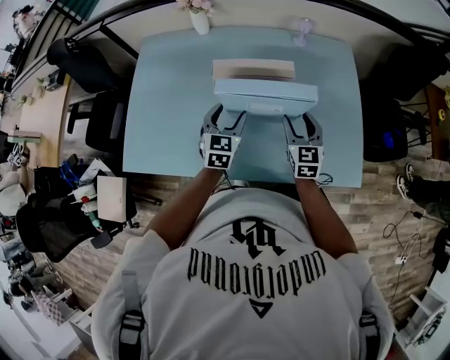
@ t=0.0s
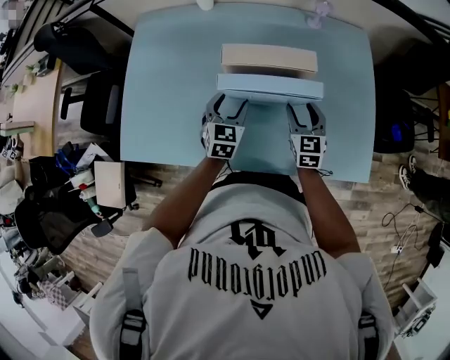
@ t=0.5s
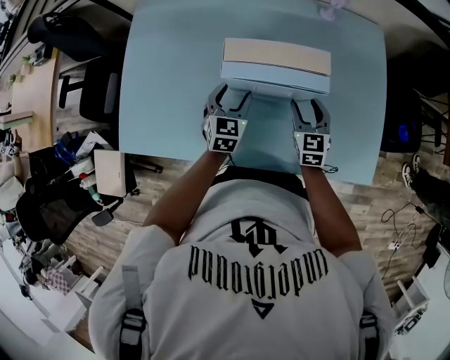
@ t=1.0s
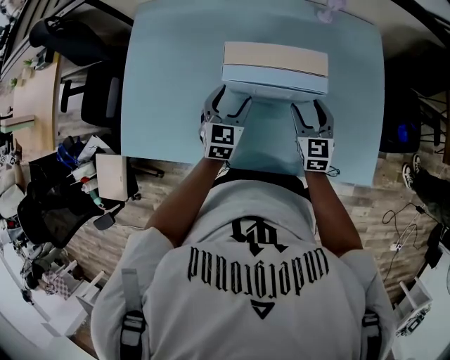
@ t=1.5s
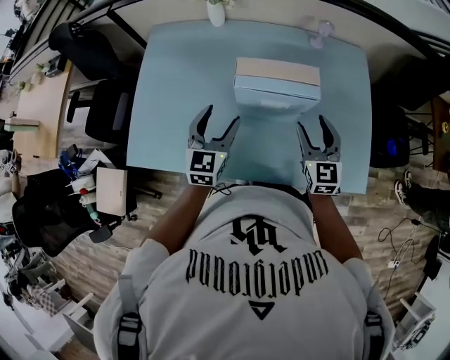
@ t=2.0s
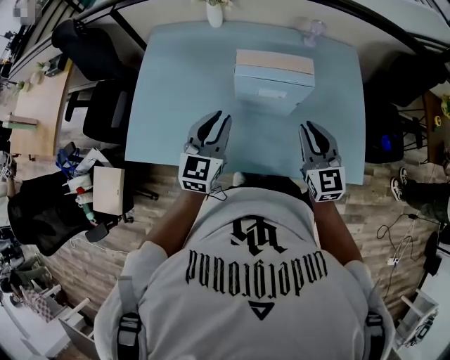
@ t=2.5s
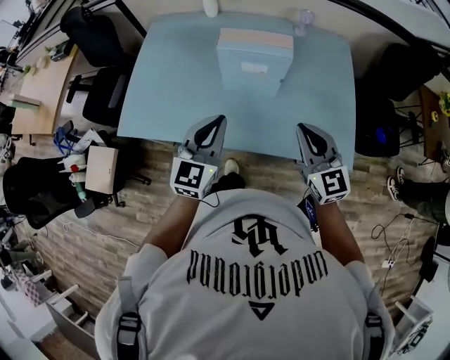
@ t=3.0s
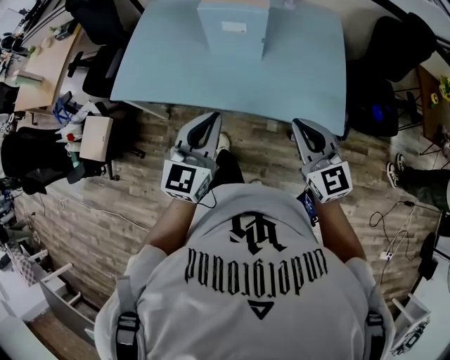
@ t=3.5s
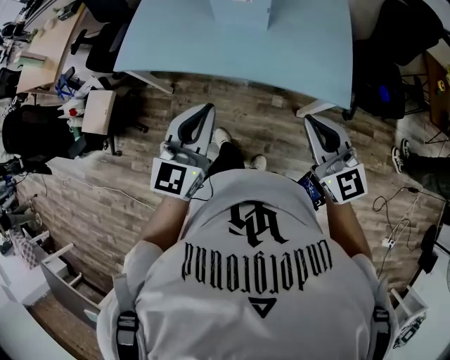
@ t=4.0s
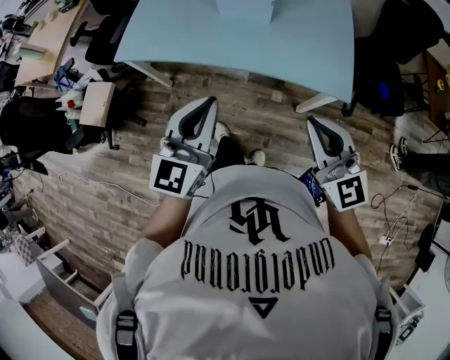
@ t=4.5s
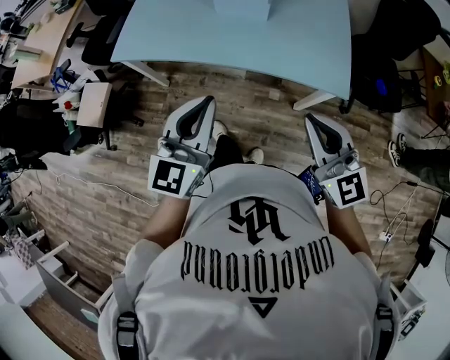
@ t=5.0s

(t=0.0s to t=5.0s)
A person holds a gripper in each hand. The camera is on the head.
t=0.0s - t=2.5s: Both grippers move upward, backward and to the left, approximately 15 cm. The right gripper closes its fingers, while the left gripper closes up.
t=2.5s - t=5.0s: The two grippers travel together, backward, approximately 40 cm. The right gripper turns by roughly 20 degrees.

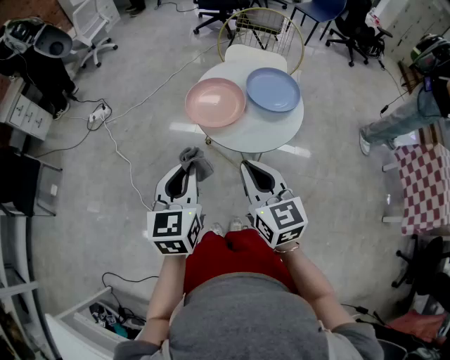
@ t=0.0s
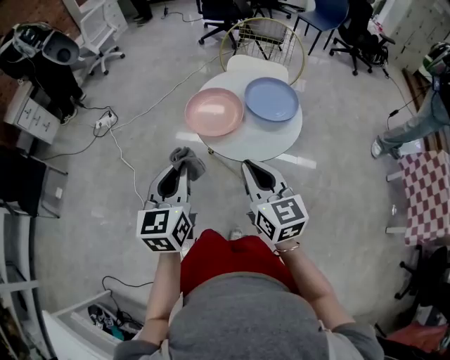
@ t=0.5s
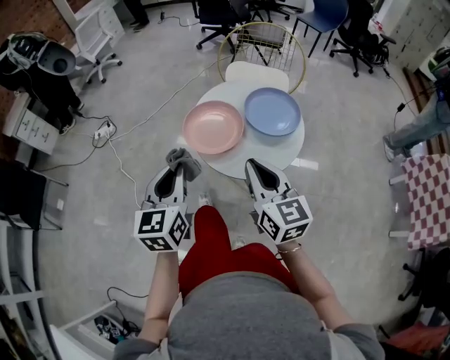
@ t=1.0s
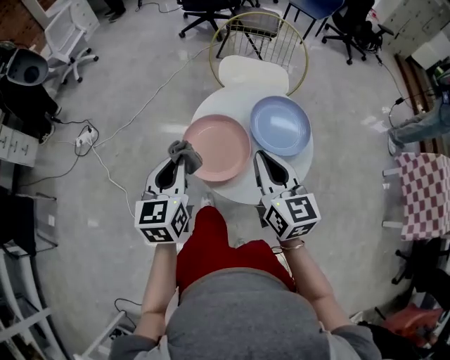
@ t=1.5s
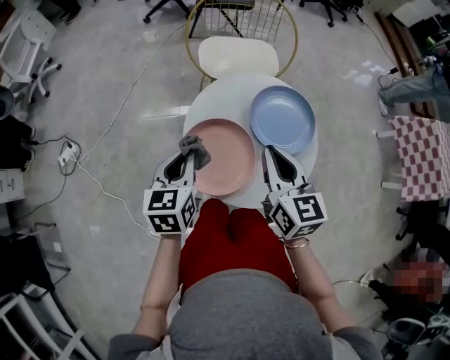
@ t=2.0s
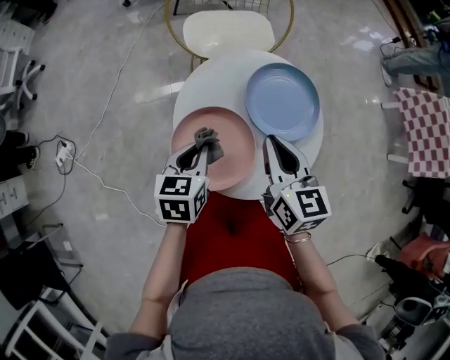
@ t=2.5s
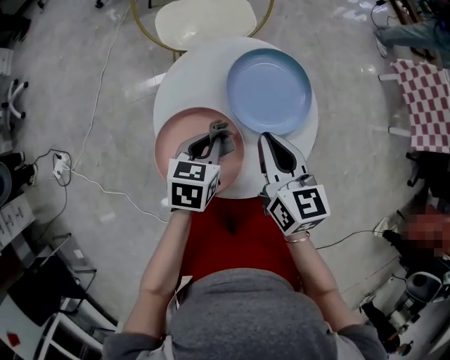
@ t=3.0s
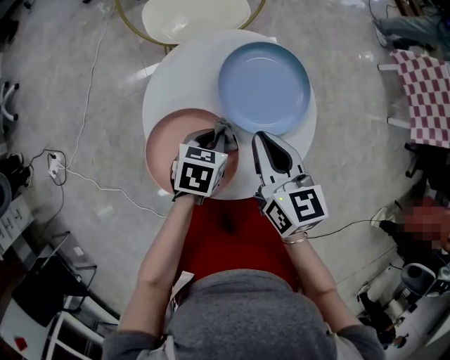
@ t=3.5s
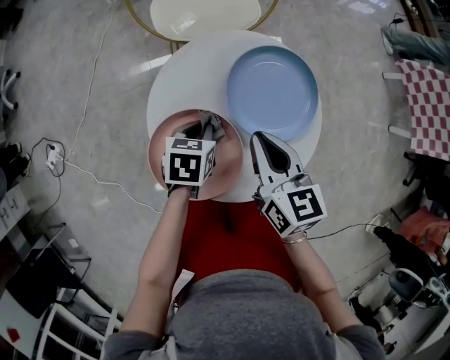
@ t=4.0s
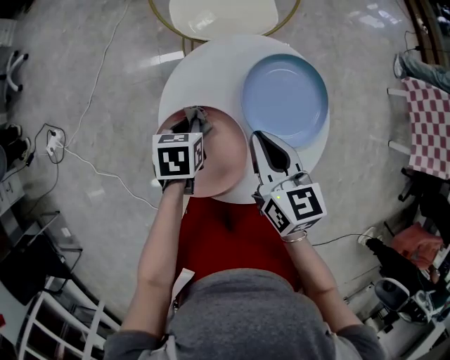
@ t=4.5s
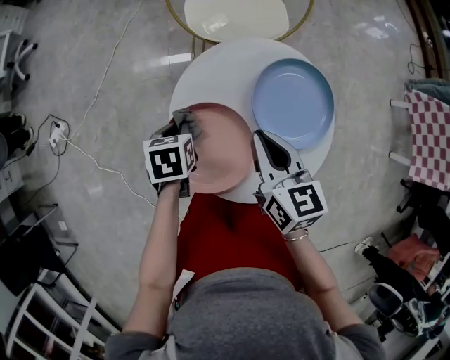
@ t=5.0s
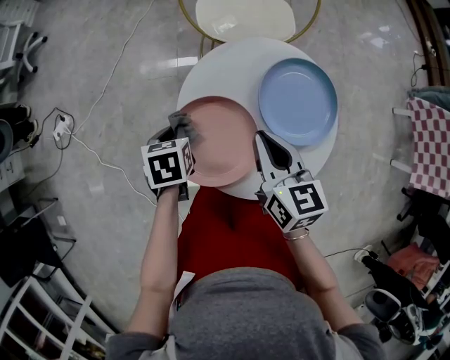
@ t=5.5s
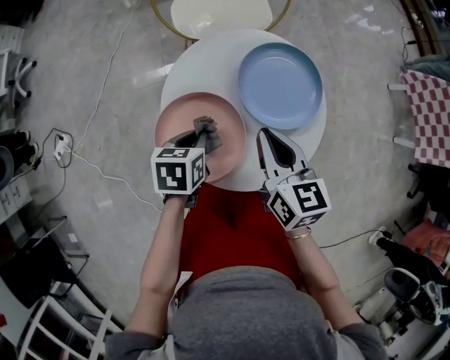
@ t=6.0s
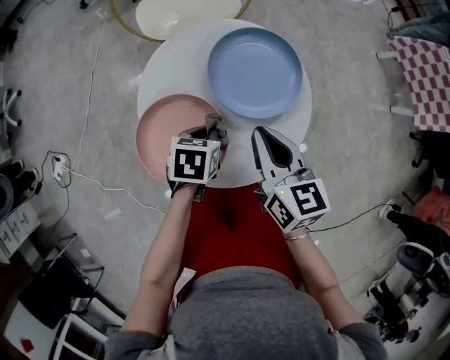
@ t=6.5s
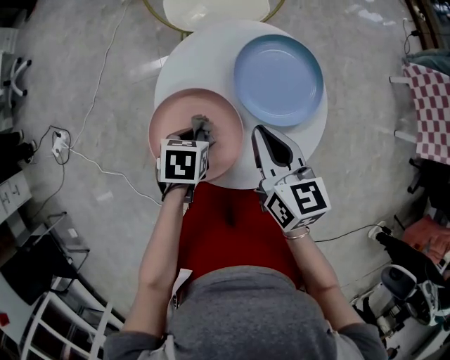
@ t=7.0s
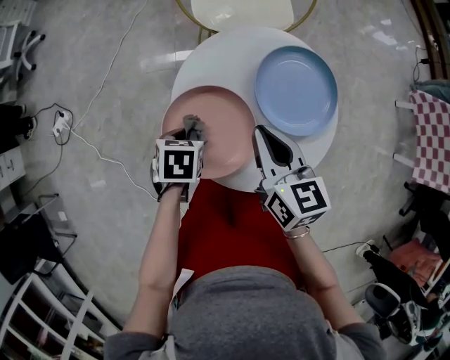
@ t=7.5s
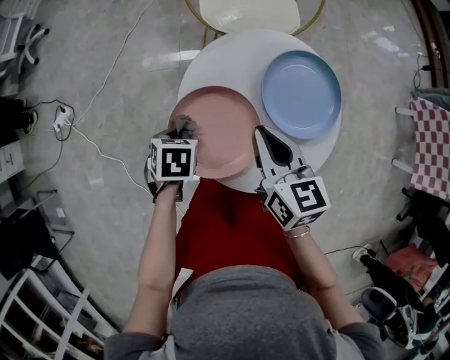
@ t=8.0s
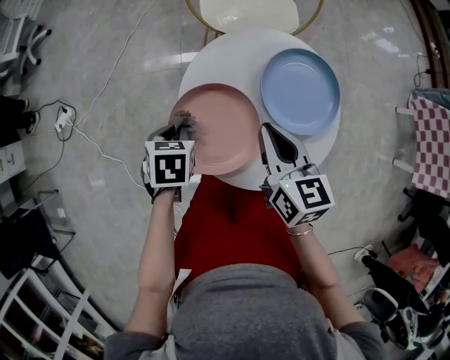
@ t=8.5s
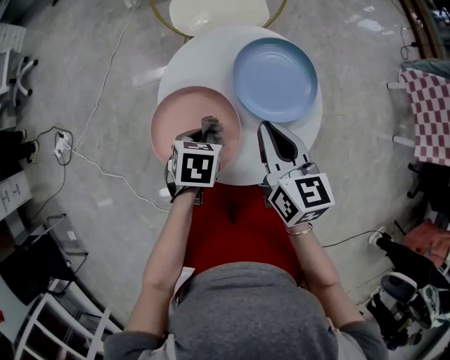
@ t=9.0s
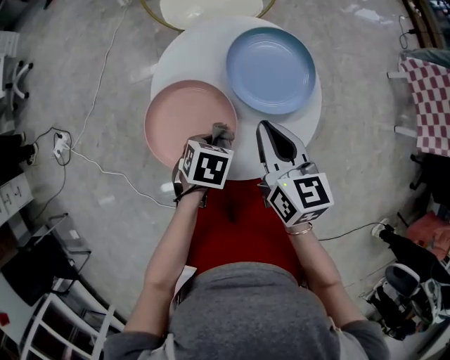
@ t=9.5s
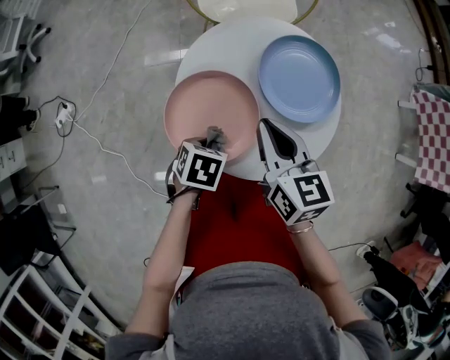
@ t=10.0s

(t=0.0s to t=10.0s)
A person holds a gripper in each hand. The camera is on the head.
t=0.0s - t=2.0s: The grippers both shift forward by approximately 35 cm. The left gripper changes its angle by approximately 20 degrees. The right gripper rotates roughly 30 degrees.
t=2.0s - t=4.0s: The right gripper heads downward, covering roughly 10 cm; the left gripper heads downward, covering some 15 cm, and rotates roughly 40 degrees.
t=4.0s - t=6.0s: The left gripper is displaced backward by some 5 cm, and moves some 15 cm to the left and comes back.
t=6.0s - t=8.0s: The right gripper shifts by roughly 5 cm; the left gripper shifts by about 10 cm, and swivels some 20 degrees.
t=8.0s - t=10.0s: The left gripper moves about 10 cm.

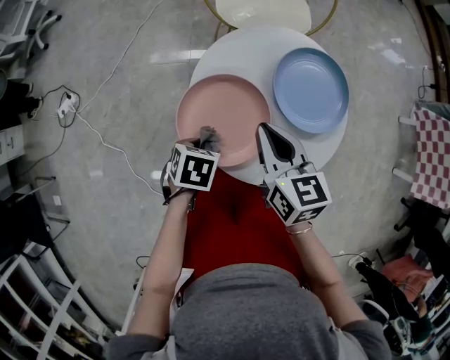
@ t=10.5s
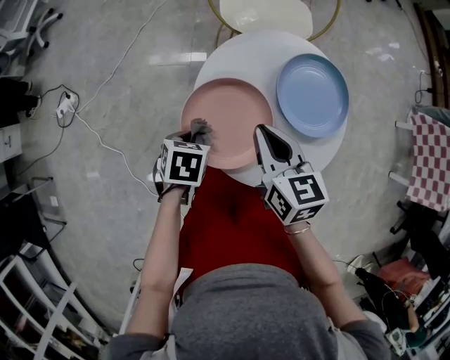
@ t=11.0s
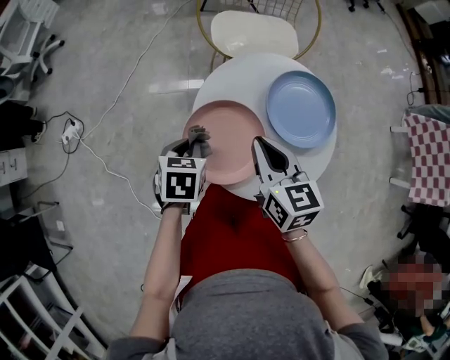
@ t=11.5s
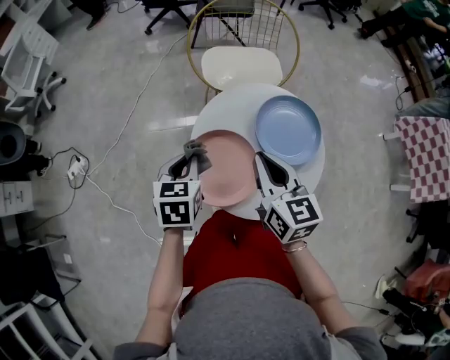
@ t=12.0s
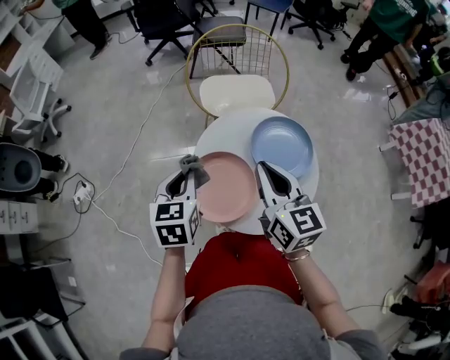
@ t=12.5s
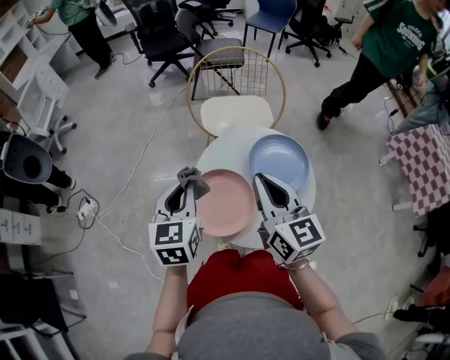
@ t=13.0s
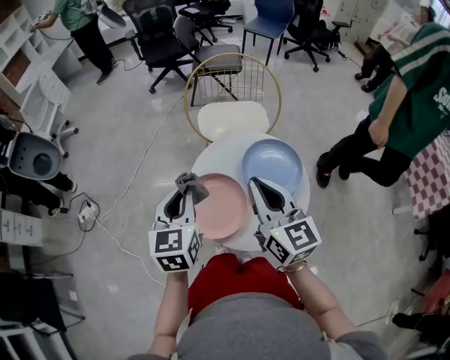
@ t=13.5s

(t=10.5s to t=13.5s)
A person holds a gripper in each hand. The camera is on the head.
t=10.5s - t=12.0s: The left gripper goes approximately 15 cm upward and forward, and rotates roughly 30 degrees. The right gripper travels upward by roughly 5 cm.
t=12.0s - t=13.5s: Both grippers travel together upward, roughly 10 cm. The left gripper rotates approximately 20 degrees.

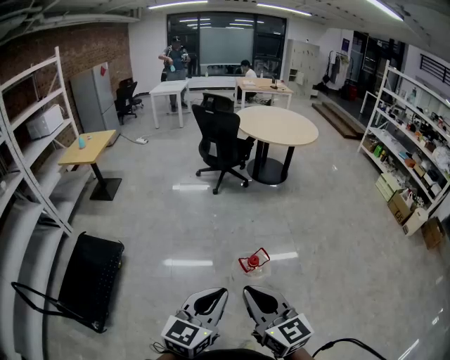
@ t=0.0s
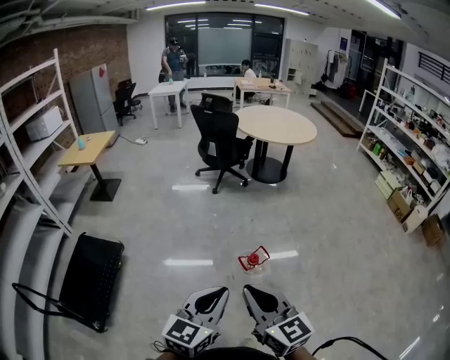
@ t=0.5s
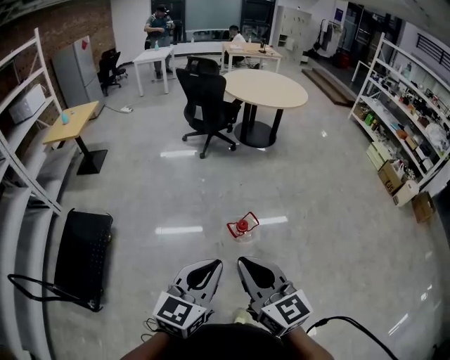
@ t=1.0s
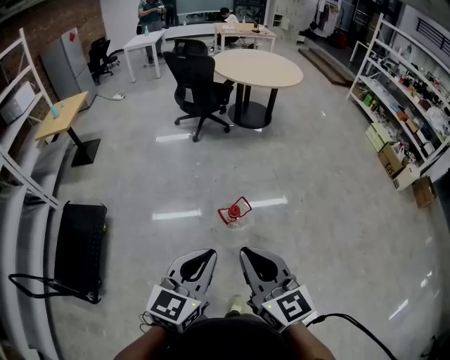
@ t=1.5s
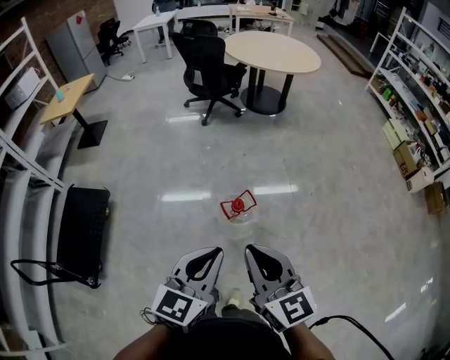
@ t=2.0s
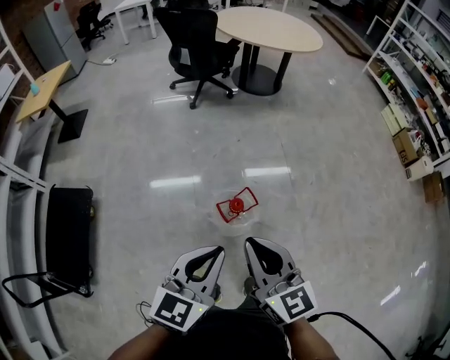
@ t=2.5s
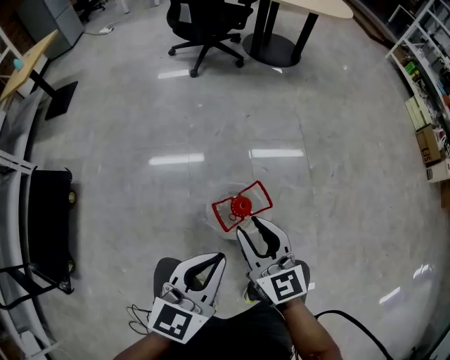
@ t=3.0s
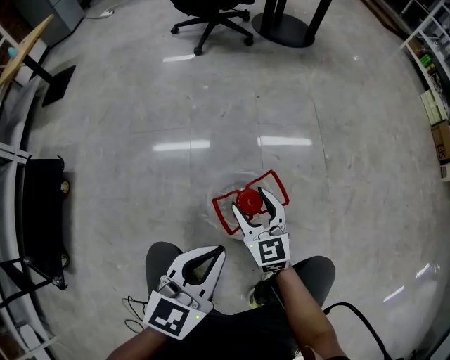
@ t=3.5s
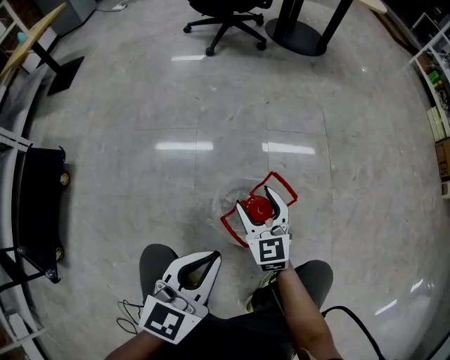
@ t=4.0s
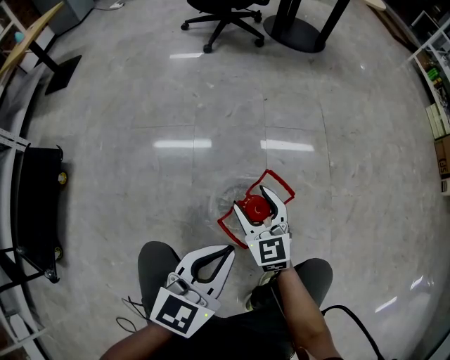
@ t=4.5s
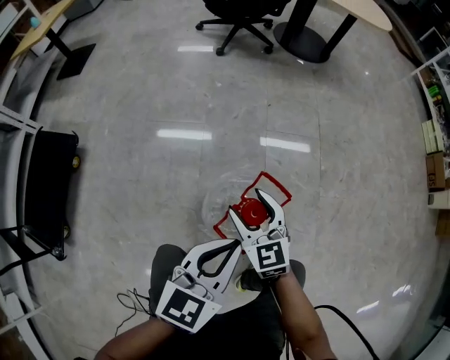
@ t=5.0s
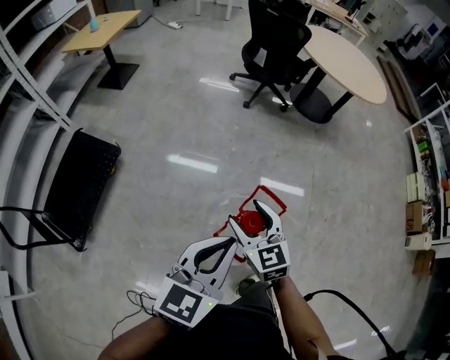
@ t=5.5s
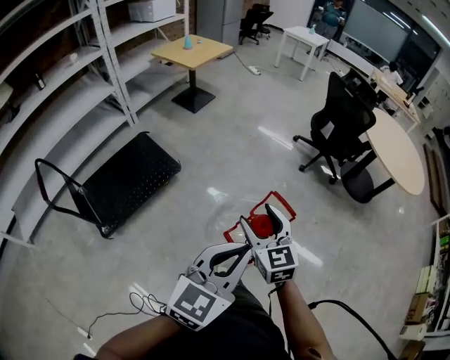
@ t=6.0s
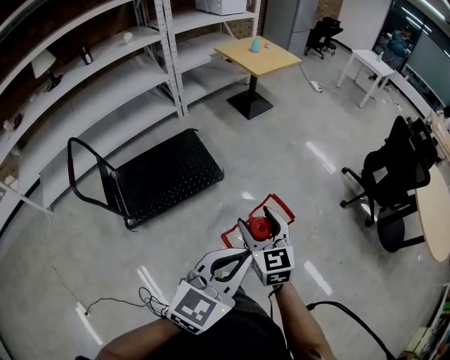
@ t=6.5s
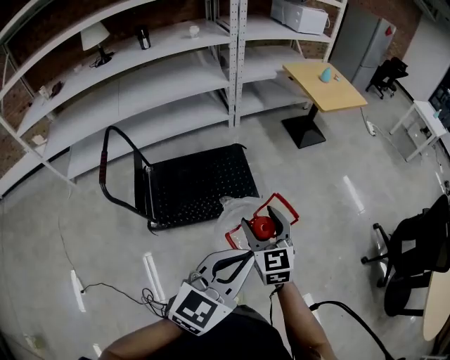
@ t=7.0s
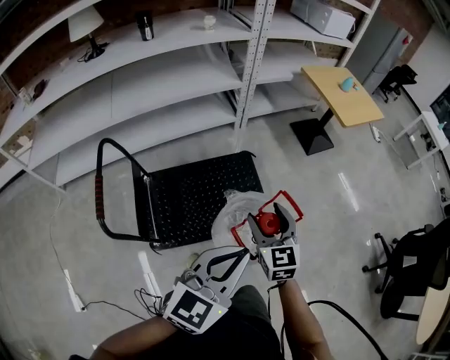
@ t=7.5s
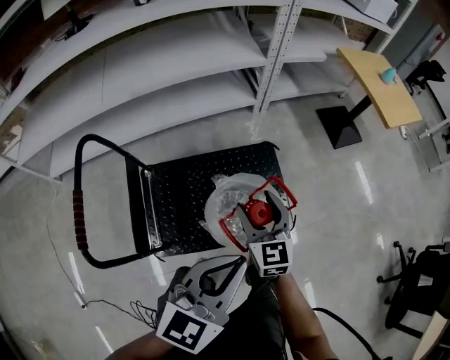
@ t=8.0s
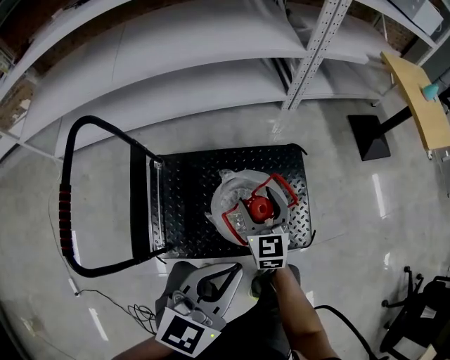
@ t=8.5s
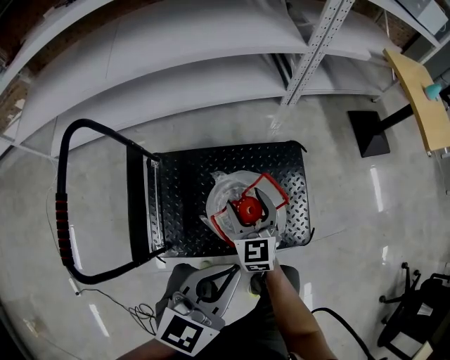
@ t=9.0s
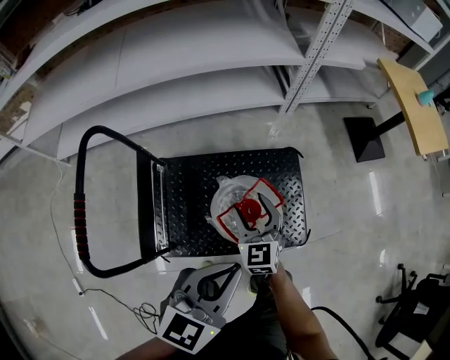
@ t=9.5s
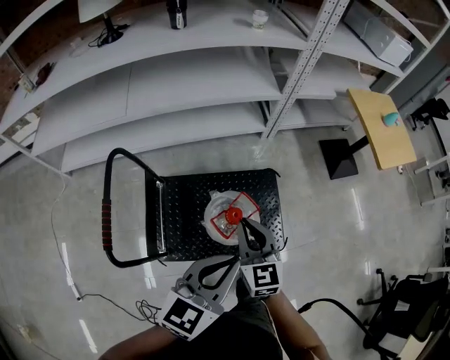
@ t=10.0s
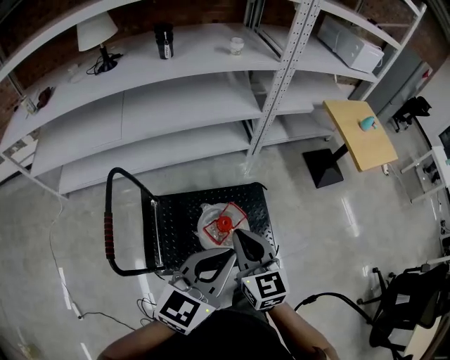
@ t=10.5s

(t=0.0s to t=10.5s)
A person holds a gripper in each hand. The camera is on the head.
t=0.0s - t=2.0s: The right gripper heads to the right and forward, covering approximately 15 cm; the left gripper goes roughly 15 cm to the right, forward and downward.
t=2.0s - t=4.0s: The grippers both shift downward and forward by approximately 70 cm. The right gripper rotates about 20 degrees, and opens its fingers.
t=4.0s - t=6.5s: Both grippers are carried roughly 60 cm. The left gripper shifts approximately 60 cm upward, and swivels approximately 40 degrees; the right gripper rotates some 50 degrees.
t=6.5s - t=8.5s: The two grippers travel together, some 80 cm. The right gripper rotates roughly 30 degrees, while the left gripper changes its angle by roughly 30 degrees.
t=8.5s - t=10.5s: Both grippers travel together upward, roughly 35 cm. The right gripper closes.
